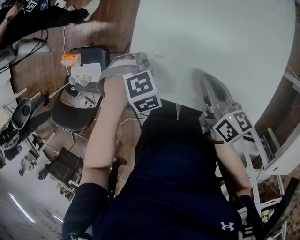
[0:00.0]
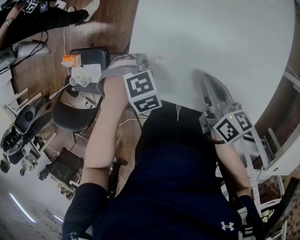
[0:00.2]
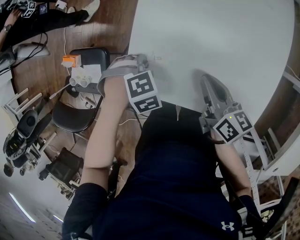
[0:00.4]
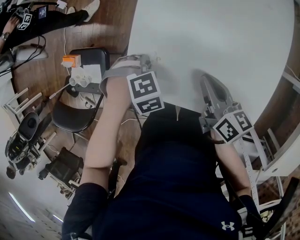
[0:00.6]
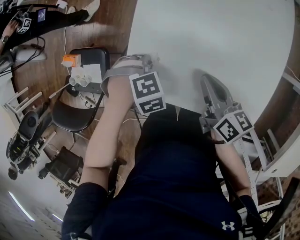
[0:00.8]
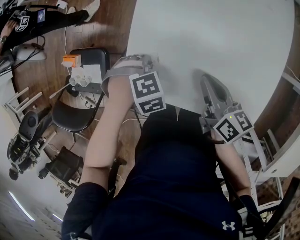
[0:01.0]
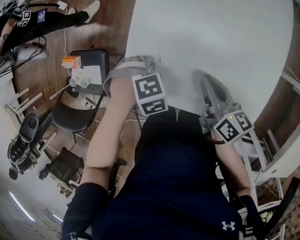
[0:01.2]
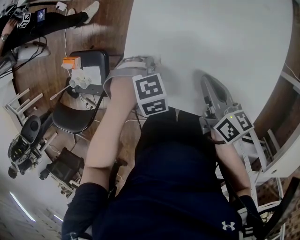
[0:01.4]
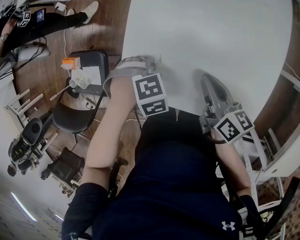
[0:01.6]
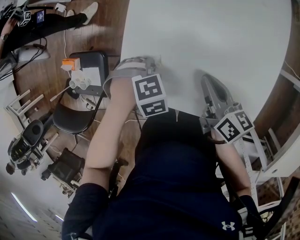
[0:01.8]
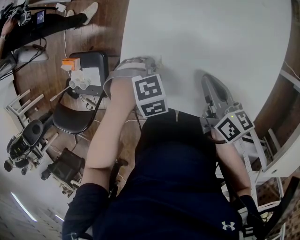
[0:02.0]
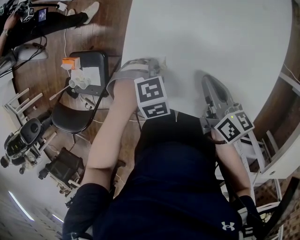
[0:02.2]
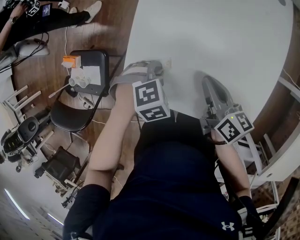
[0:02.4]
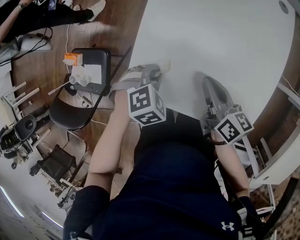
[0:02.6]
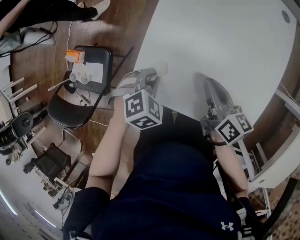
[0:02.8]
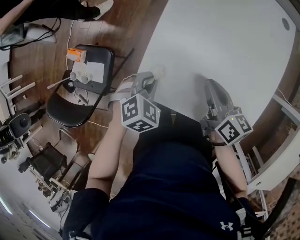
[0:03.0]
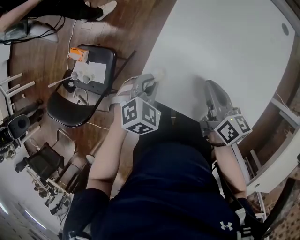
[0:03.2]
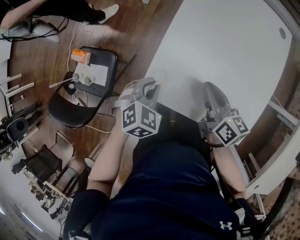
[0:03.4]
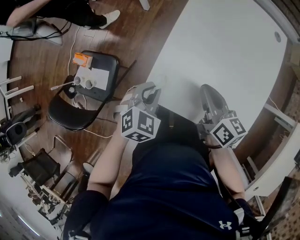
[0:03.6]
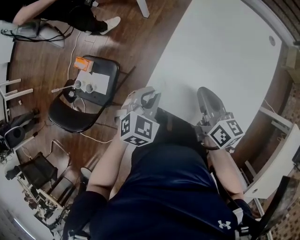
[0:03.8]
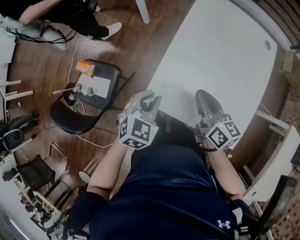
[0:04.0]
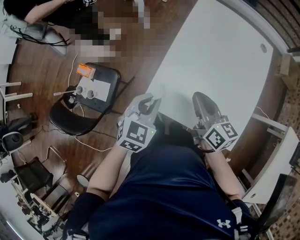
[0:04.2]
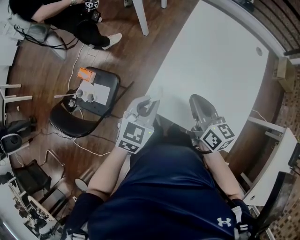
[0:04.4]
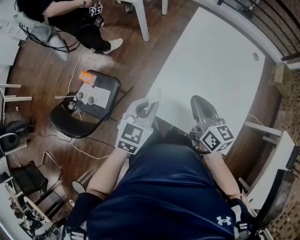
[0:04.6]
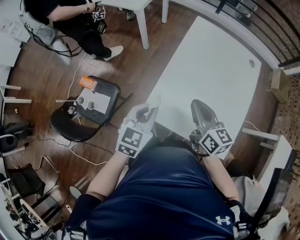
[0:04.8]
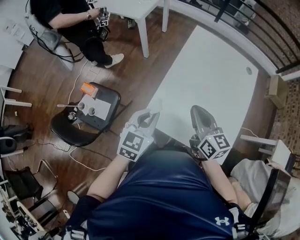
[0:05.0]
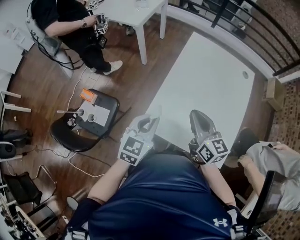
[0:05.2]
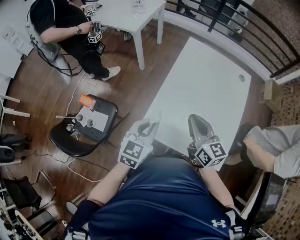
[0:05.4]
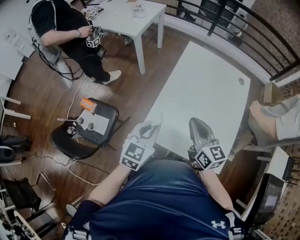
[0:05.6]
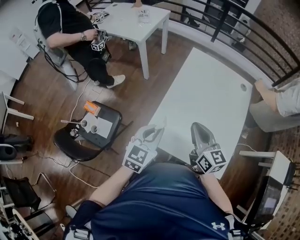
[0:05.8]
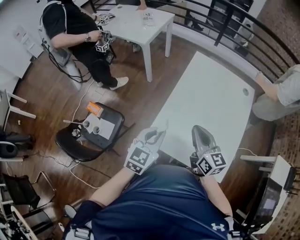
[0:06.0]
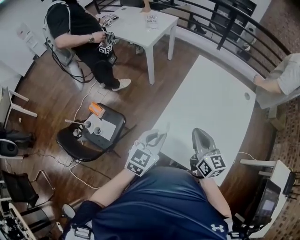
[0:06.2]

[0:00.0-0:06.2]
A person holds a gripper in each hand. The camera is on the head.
0.0 to 1.6 s: The grippers move only a little.
1.6 to 3.2 s: The left gripper is displaced upward by some 10 cm, and turns by about 40 degrees; the right gripper changes place by approximately 5 cm.
3.2 to 4.6 s: The right gripper moves upward and to the left, roughly 10 cm. Meanwhile the left gripper is displaced upward by about 15 cm, and points its fingers roughly 30 degrees further upward.
4.6 to 6.2 s: The grippers make only small movements.

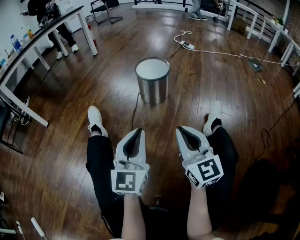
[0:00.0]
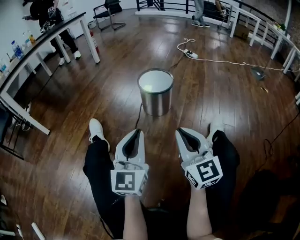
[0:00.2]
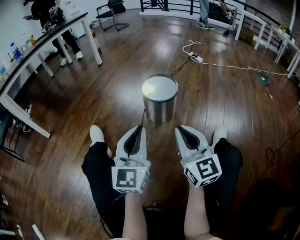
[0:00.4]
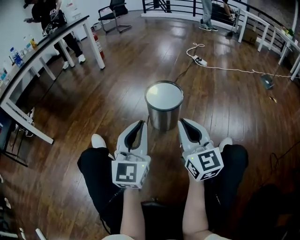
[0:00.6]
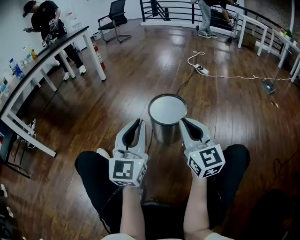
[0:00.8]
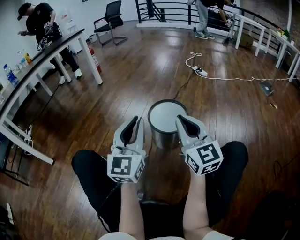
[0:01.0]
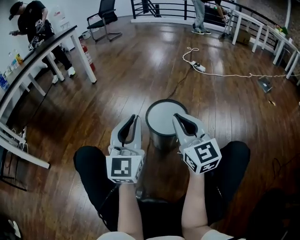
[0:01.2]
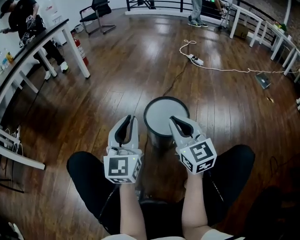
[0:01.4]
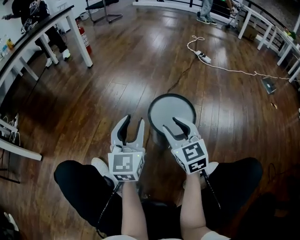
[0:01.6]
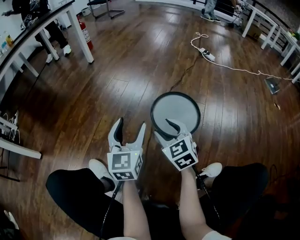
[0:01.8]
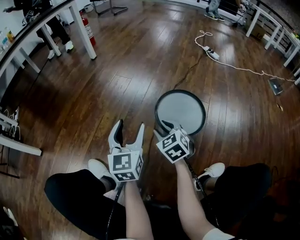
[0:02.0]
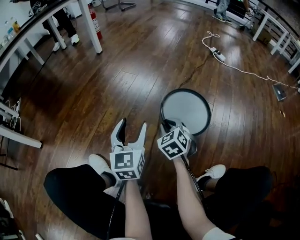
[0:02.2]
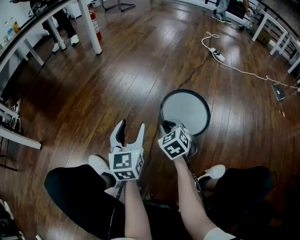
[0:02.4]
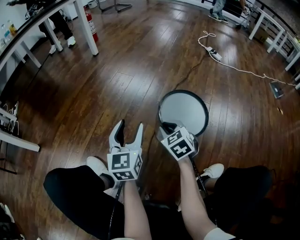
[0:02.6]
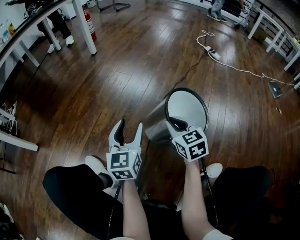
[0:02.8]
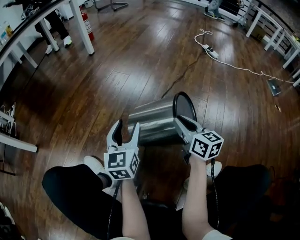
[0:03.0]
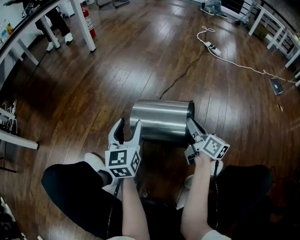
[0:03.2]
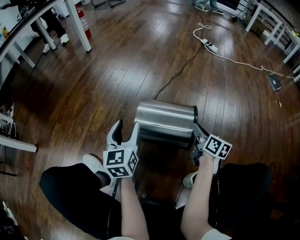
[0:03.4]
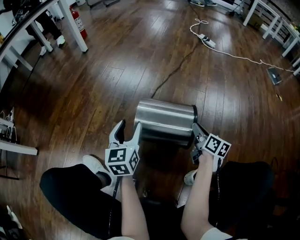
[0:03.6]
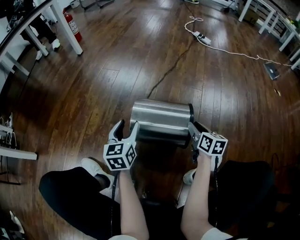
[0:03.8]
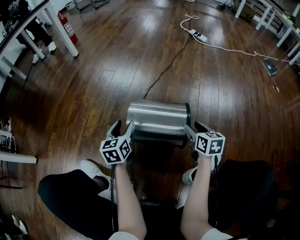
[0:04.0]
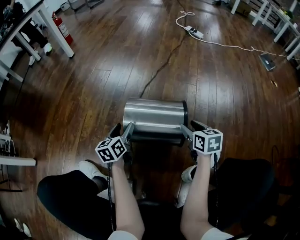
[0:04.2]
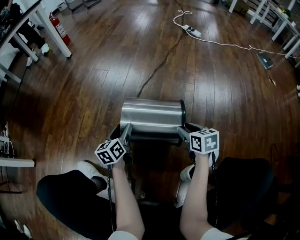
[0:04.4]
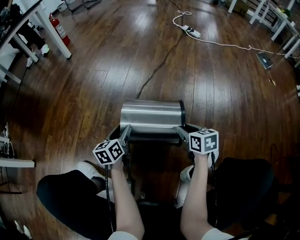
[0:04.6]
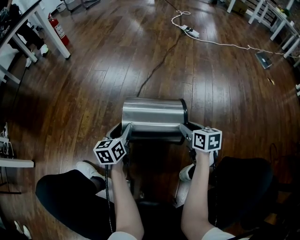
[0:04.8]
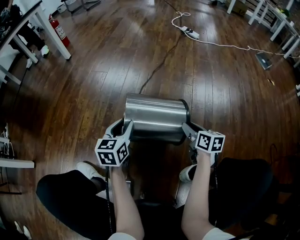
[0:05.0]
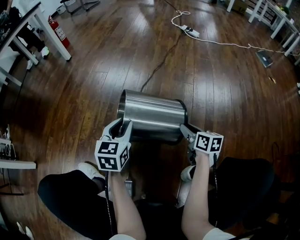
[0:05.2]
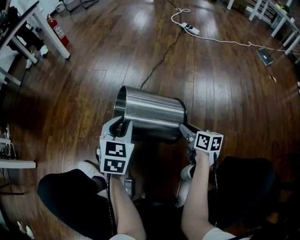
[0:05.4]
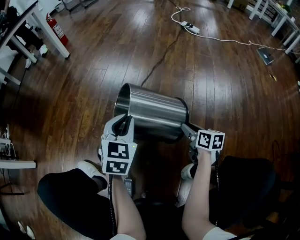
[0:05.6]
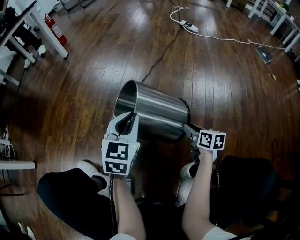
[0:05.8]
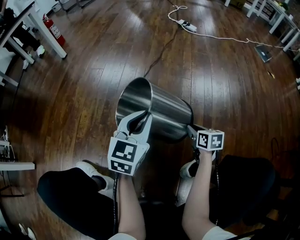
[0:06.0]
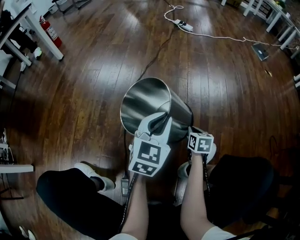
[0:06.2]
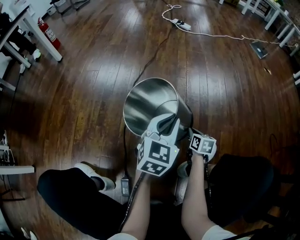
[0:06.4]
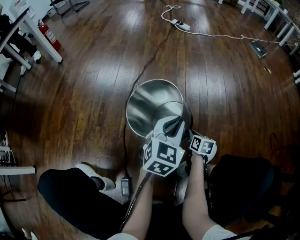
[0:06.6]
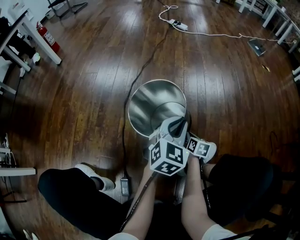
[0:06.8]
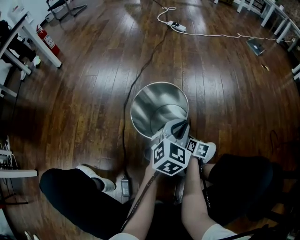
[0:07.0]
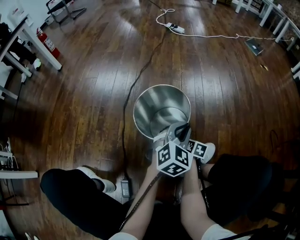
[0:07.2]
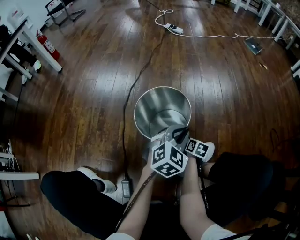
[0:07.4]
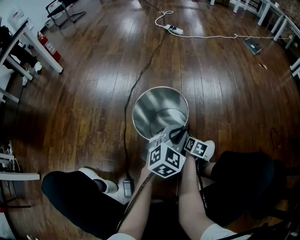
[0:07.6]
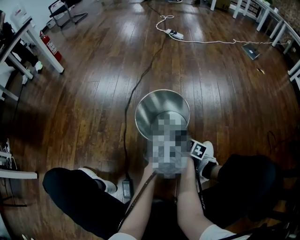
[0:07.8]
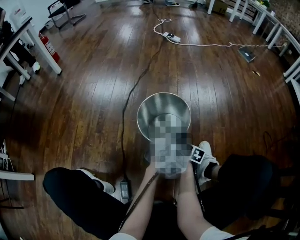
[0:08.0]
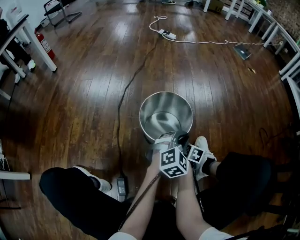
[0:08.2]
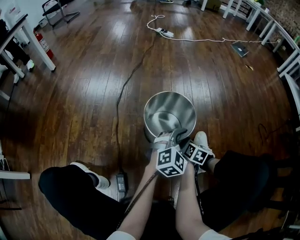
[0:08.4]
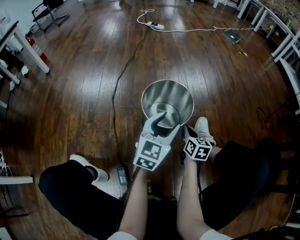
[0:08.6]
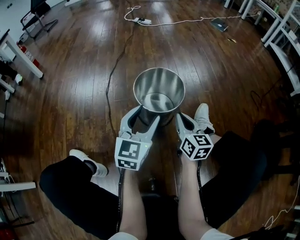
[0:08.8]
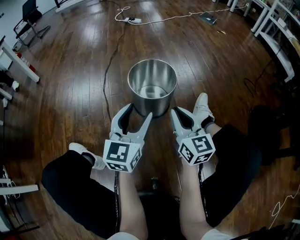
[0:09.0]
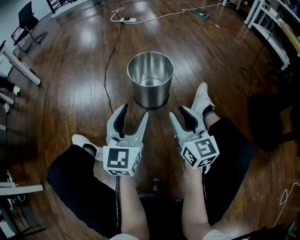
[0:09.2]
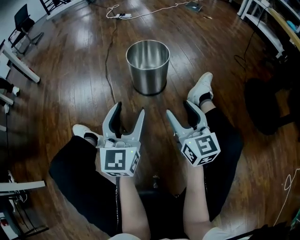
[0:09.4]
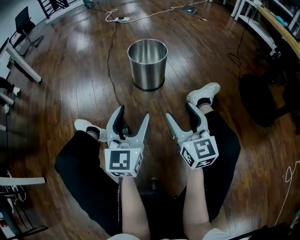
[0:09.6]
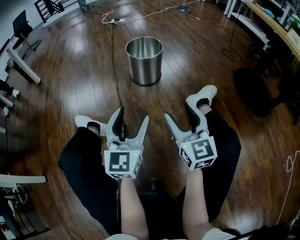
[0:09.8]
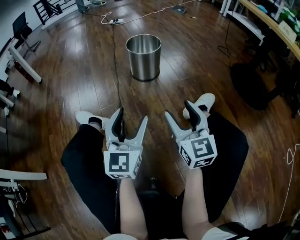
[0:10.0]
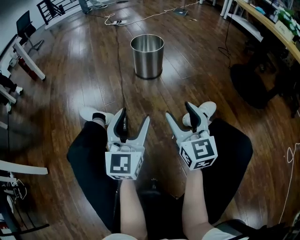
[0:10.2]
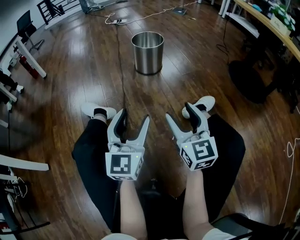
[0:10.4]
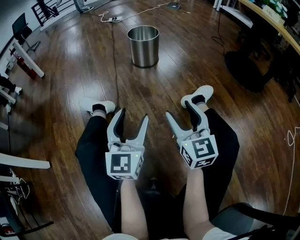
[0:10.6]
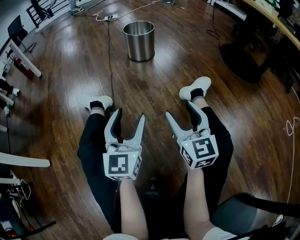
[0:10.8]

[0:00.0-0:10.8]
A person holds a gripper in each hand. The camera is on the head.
0.0 to 1.6 s: The two grippers travel together, forward, approximately 40 cm. The right gripper opens its fingers. The left gripper opens up.
1.6 to 3.0 s: The right gripper goes about 5 cm downward, turns by some 30 degrees, and closes up. Meanwhile the left gripper is displaced downward and to the left by approximately 10 cm.
3.0 to 4.6 s: The right gripper goes some 15 cm downward and to the right, swivels some 30 degrees, and opens and closes again. The left gripper travels downward by approximately 15 cm, and rotates approximately 30 degrees.
4.6 to 6.2 s: The left gripper is displaced to the right and upward by roughly 25 cm, rolls clockwise, seen from behind, by roughly 40 degrees, and closes, while the right gripper shifts approximately 10 cm to the right and downward, changes its angle by about 20 degrees, and closes up.
6.2 to 7.8 s: The right gripper shifts by some 5 cm, and swivels some 30 degrees, while the left gripper goes approximately 10 cm to the right, and changes its angle by roughly 20 degrees.
7.8 to 9.2 s: The left gripper goes about 30 cm backward and upward, swivels about 30 degrees, and opens its fingers; the right gripper heads upward and backward, covering roughly 40 cm, angles its fingers upward, by about 40 degrees, and opens up.
9.2 to 10.8 s: The two grippers travel together, backward, some 50 cm. The right gripper opens.

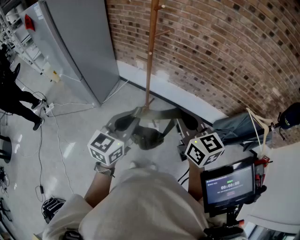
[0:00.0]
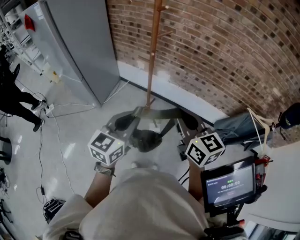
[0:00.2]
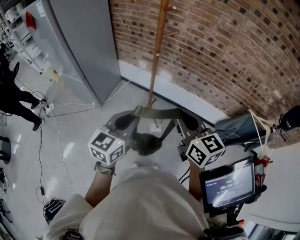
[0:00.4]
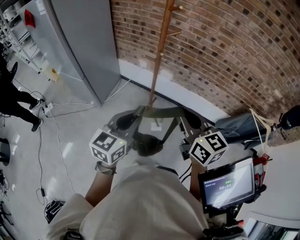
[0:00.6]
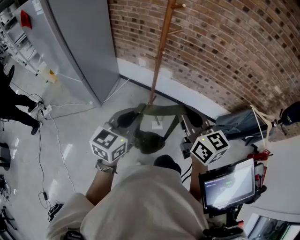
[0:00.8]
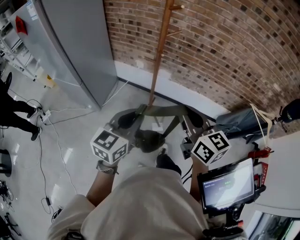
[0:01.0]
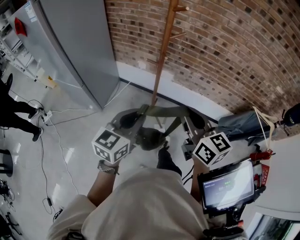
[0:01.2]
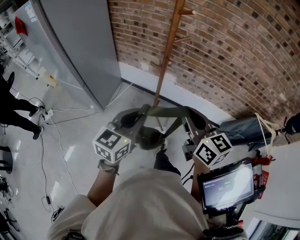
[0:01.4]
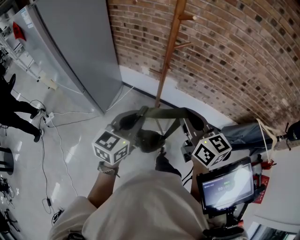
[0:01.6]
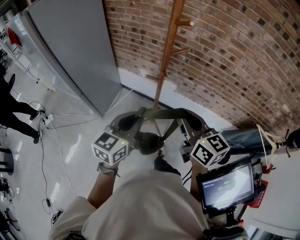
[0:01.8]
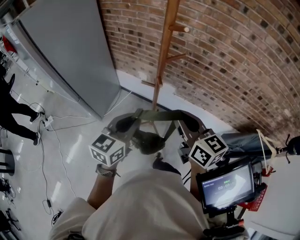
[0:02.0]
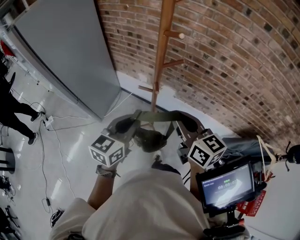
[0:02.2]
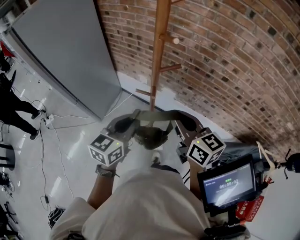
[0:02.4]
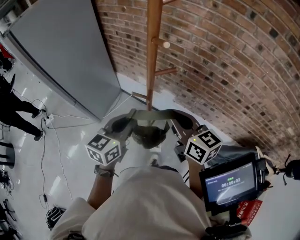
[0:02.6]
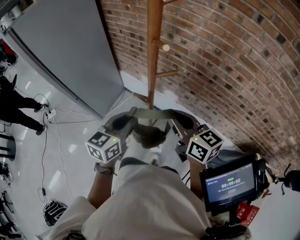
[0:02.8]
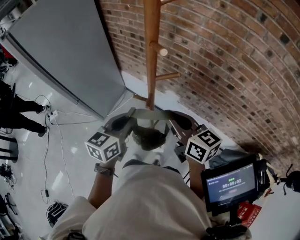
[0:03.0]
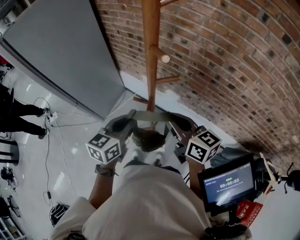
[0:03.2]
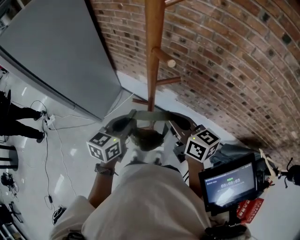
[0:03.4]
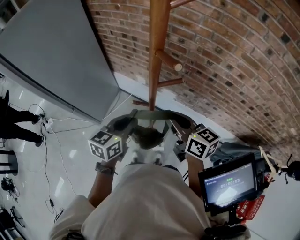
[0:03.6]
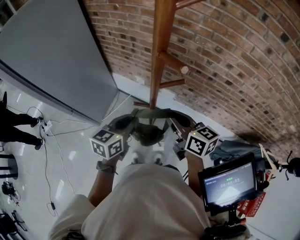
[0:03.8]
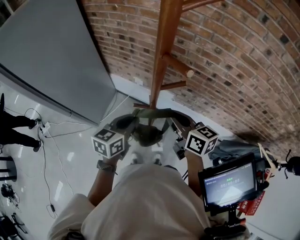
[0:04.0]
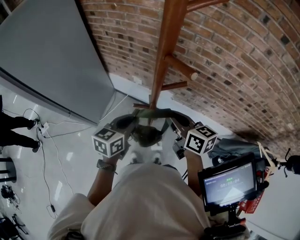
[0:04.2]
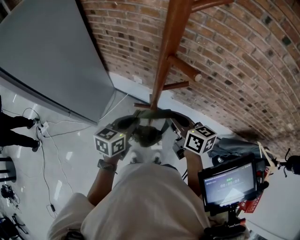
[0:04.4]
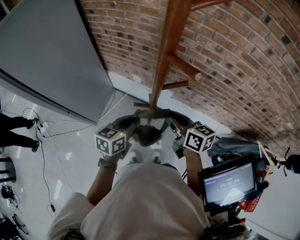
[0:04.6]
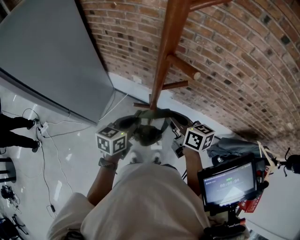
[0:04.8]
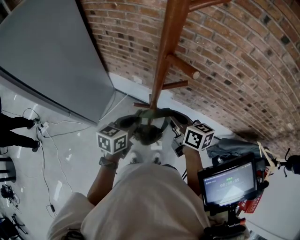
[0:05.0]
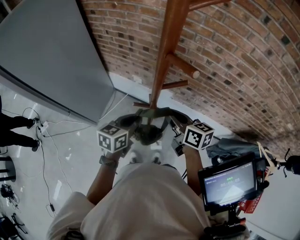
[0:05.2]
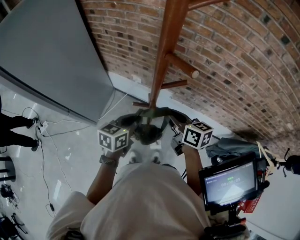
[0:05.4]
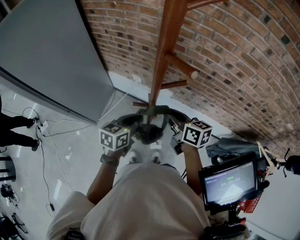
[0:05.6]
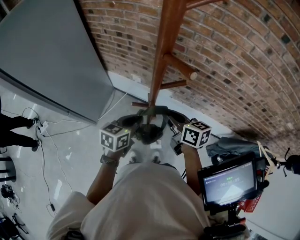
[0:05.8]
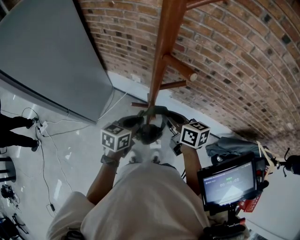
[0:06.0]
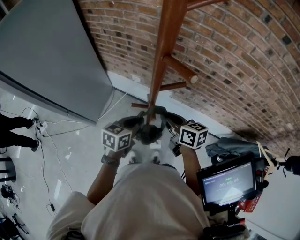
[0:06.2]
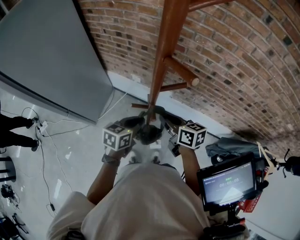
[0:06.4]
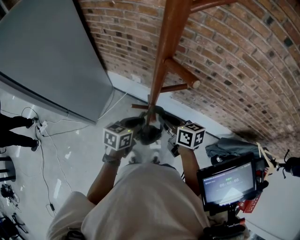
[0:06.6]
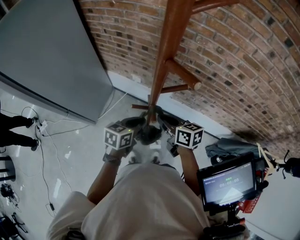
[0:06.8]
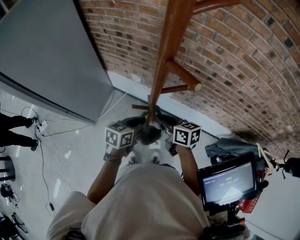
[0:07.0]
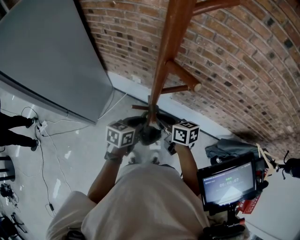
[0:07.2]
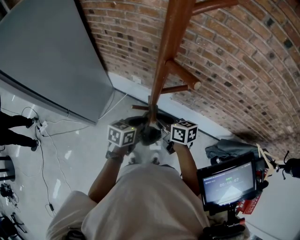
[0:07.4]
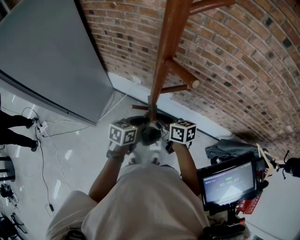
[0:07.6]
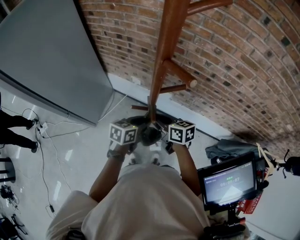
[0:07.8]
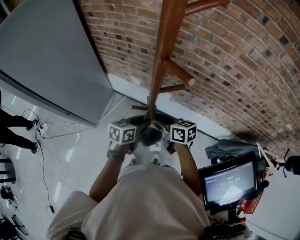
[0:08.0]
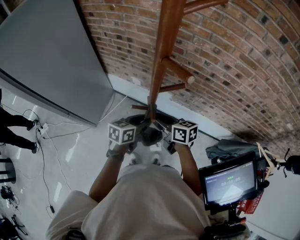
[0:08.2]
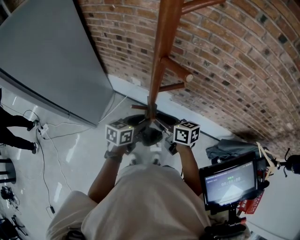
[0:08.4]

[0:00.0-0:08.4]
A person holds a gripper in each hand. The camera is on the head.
0.0 to 1.4 s: The left gripper travels forward and to the left by some 10 cm. The right gripper is displaced to the left and forward by some 10 cm.
1.4 to 2.8 s: The grippers both shift forward by some 20 cm.
2.8 to 4.2 s: The grippers both shift downward and forward by approximately 10 cm.
4.2 to 5.6 s: There are only small adjustments of the grippers.
5.6 to 7.0 s: The right gripper shifts about 5 cm downward.
7.0 to 8.4 s: The right gripper opens up. Meanwhile the left gripper opens.
